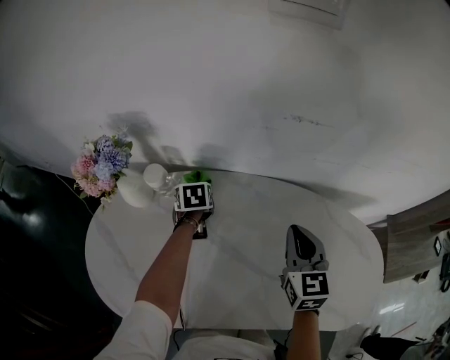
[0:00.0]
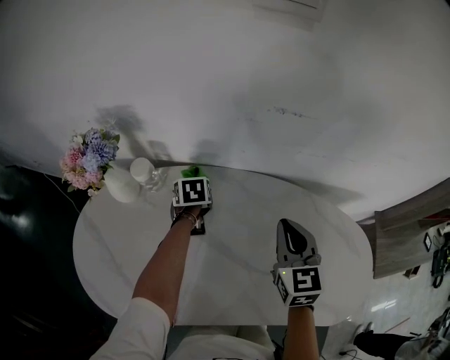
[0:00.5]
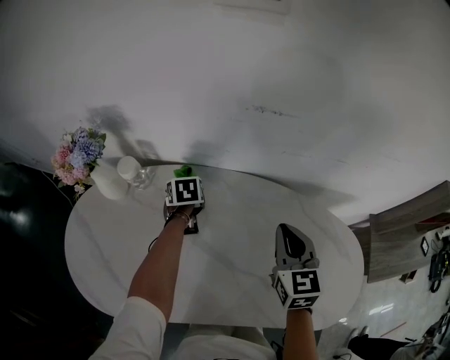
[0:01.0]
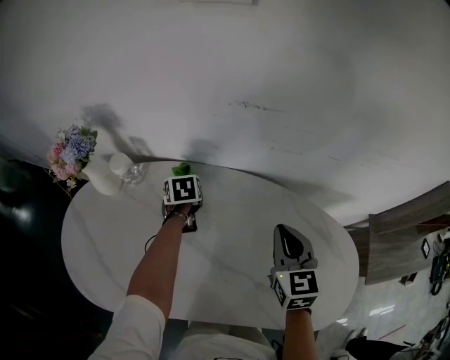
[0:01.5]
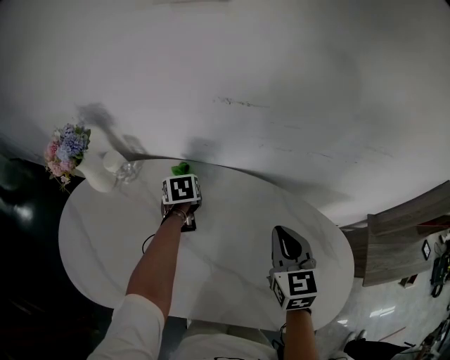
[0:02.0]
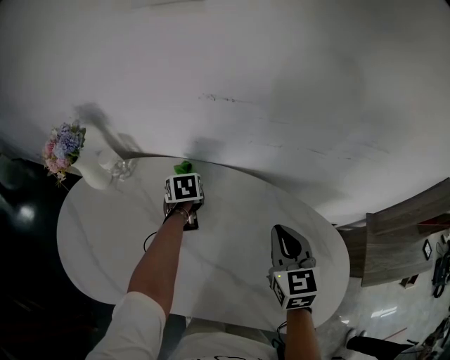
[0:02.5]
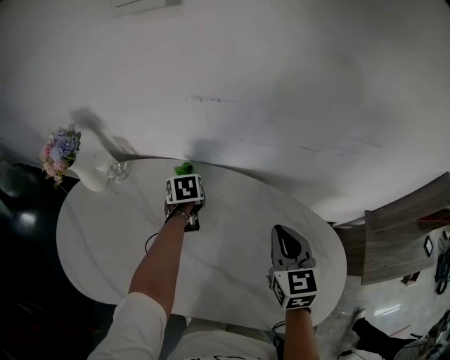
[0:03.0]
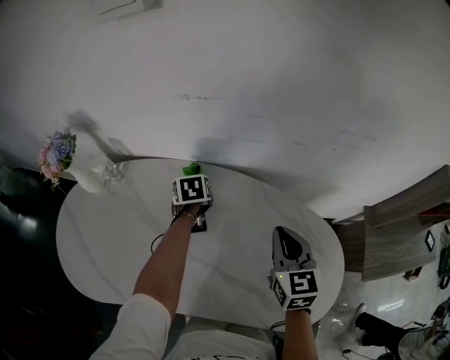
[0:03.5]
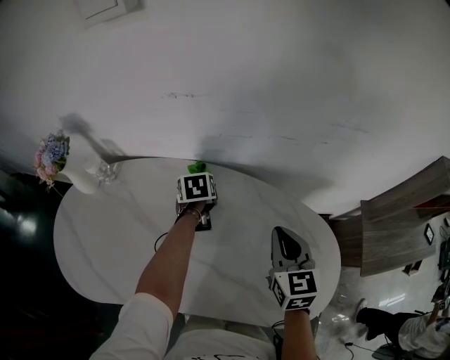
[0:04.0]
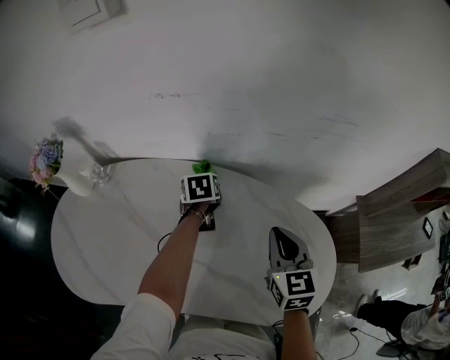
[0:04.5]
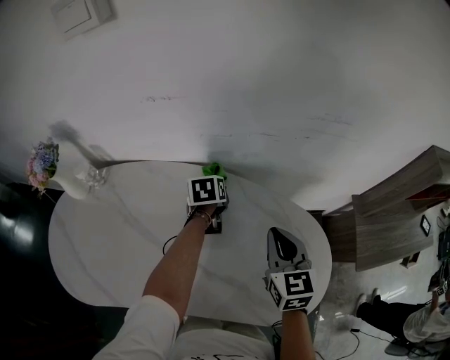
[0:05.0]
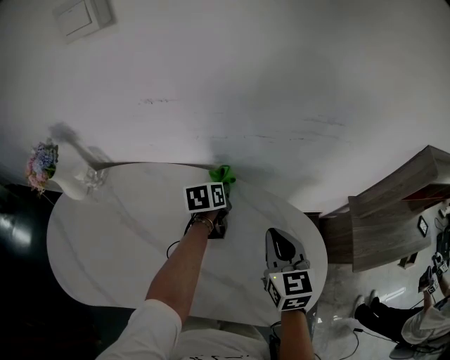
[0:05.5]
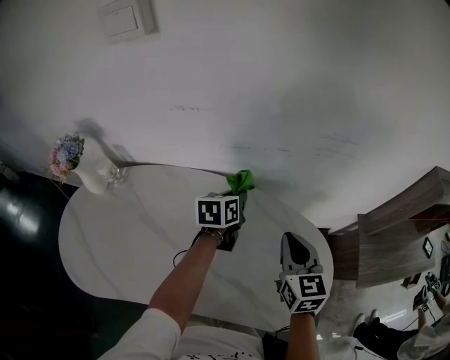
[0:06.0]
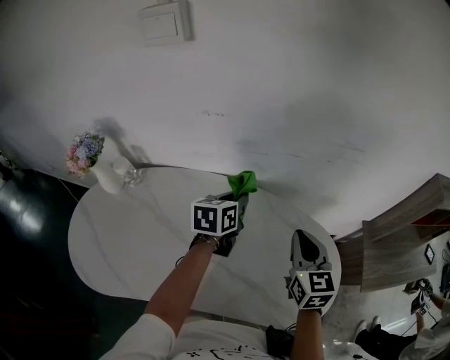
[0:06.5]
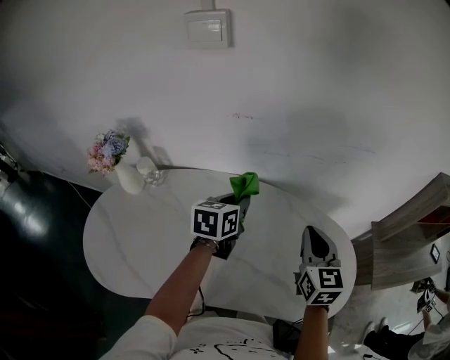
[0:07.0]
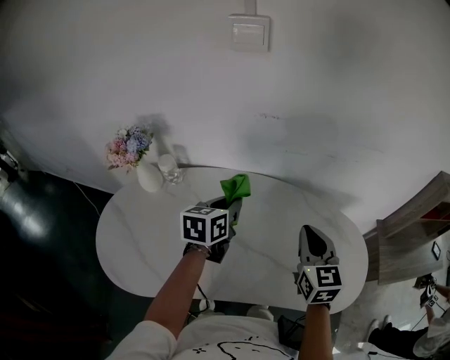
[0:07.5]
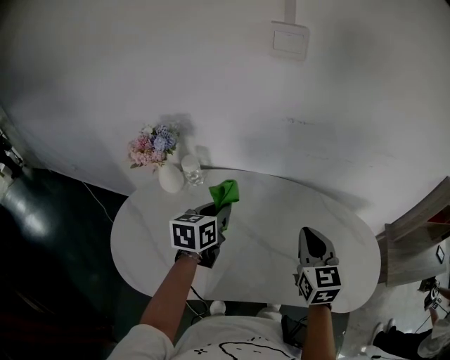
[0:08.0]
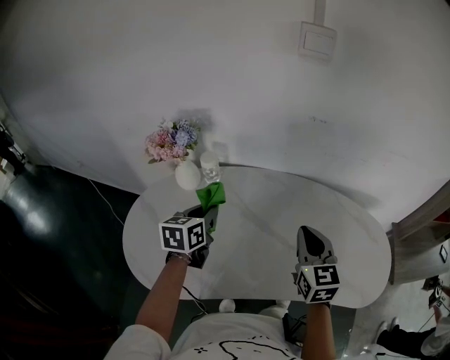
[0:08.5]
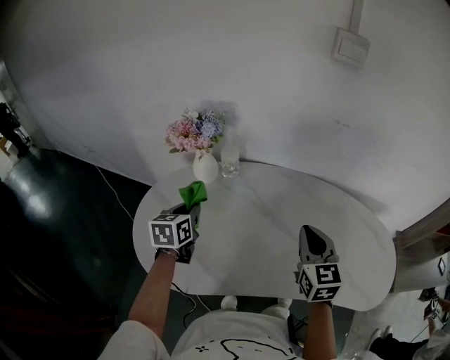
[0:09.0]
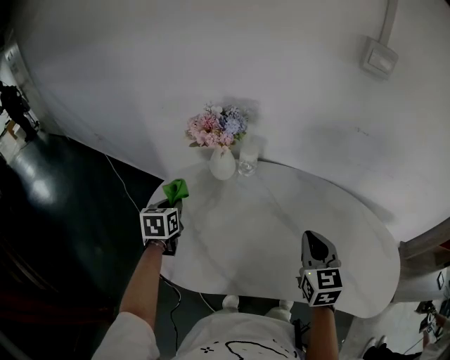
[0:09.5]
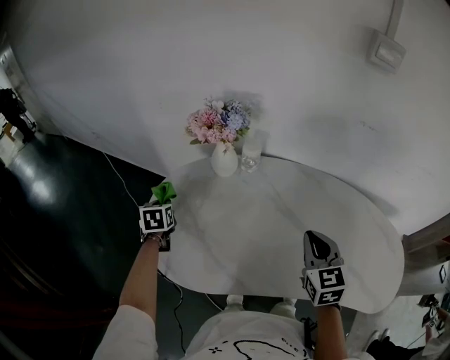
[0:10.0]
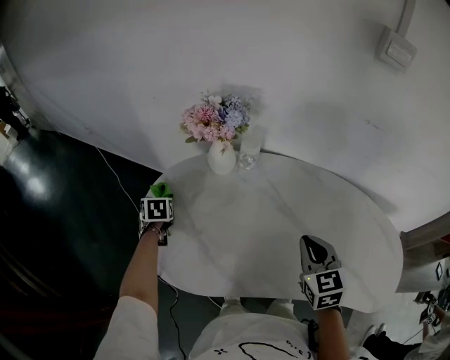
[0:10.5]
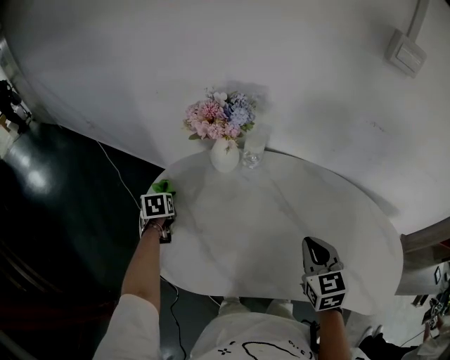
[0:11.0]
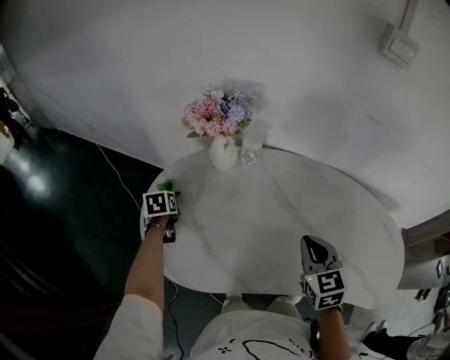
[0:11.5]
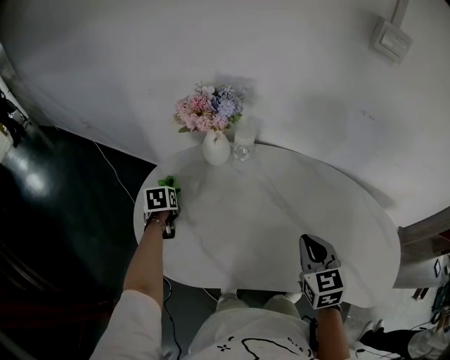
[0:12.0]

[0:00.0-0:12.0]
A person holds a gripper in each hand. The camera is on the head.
0:00.0 to 0:02.0: The grippers both shift to the right by some 10 cm.
0:02.0 to 0:04.0: The right gripper shifts approximately 10 cm to the right, while the left gripper moves to the right, some 15 cm.
0:04.0 to 0:06.0: The right gripper moves roughly 5 cm. Meanwhile the left gripper moves to the right and upward, some 15 cm, and swivels roughly 30 degrees.
0:06.0 to 0:08.0: The two grippers go about 30 cm to the left and backward.
0:08.0 to 0:10.0: The right gripper shifts by some 20 cm. The left gripper moves roughly 40 cm, and changes its angle by about 40 degrees.
0:10.0 to 0:12.0: The left gripper moves downward, roughly 5 cm.

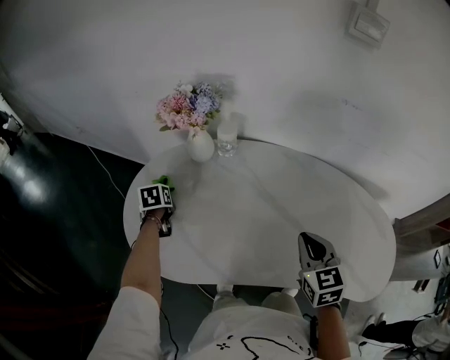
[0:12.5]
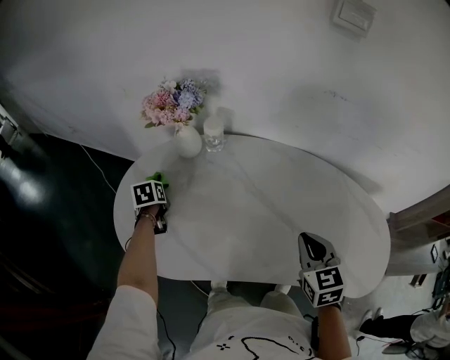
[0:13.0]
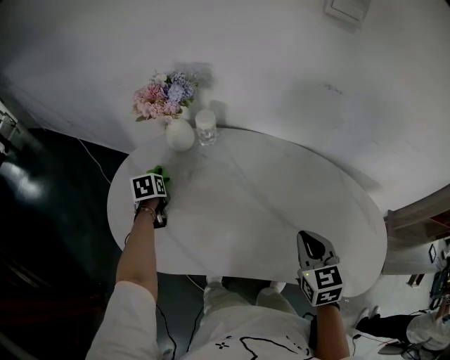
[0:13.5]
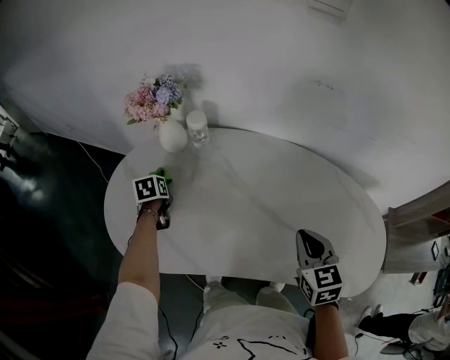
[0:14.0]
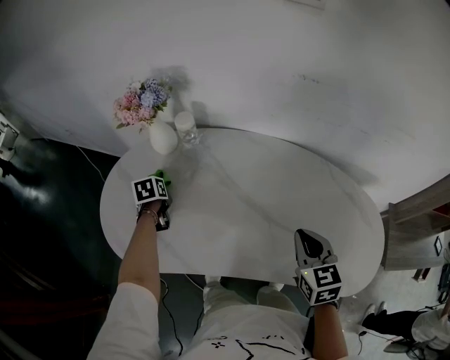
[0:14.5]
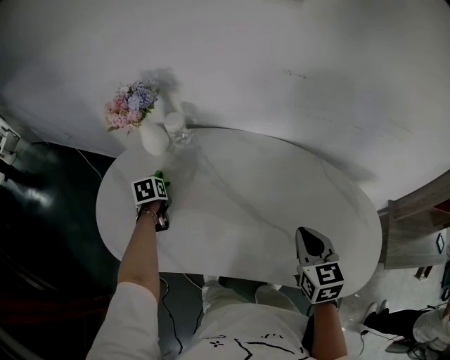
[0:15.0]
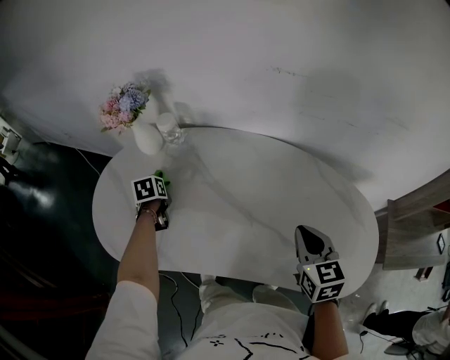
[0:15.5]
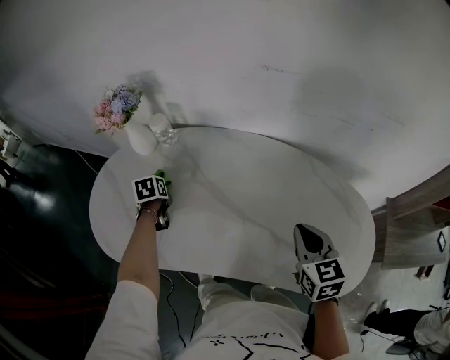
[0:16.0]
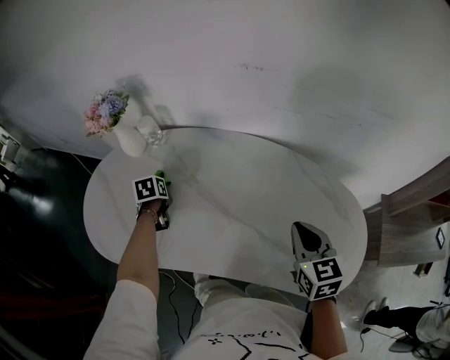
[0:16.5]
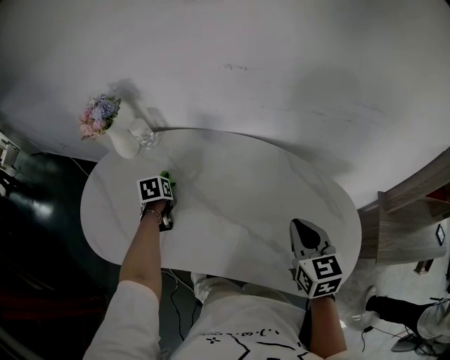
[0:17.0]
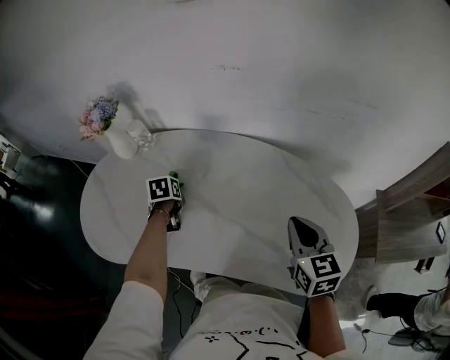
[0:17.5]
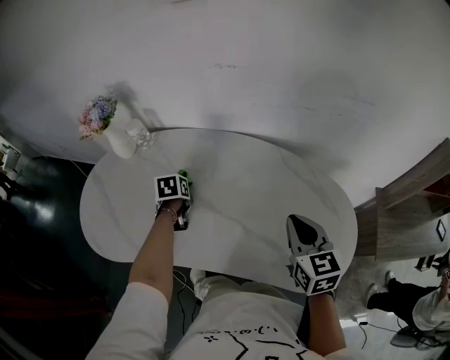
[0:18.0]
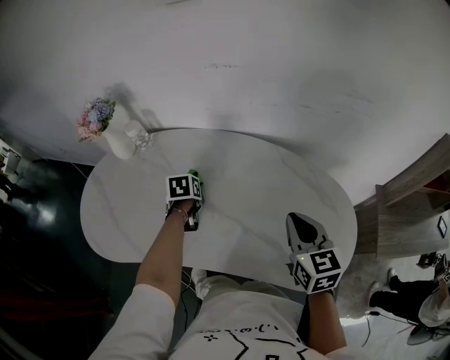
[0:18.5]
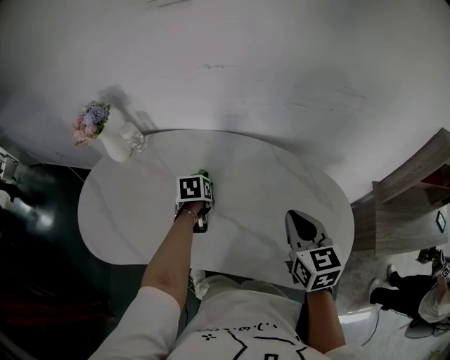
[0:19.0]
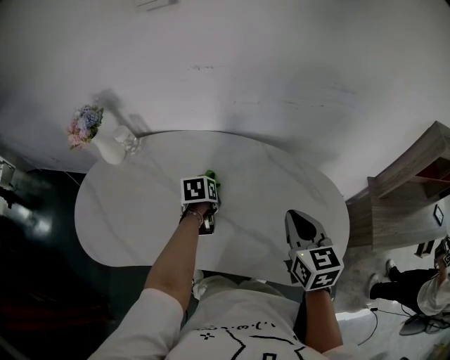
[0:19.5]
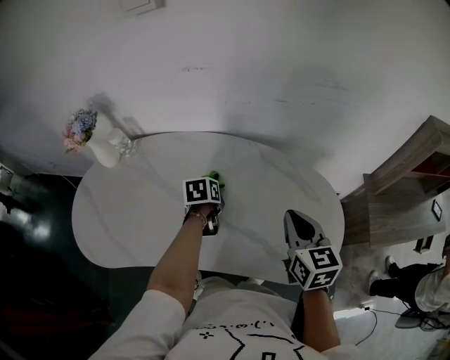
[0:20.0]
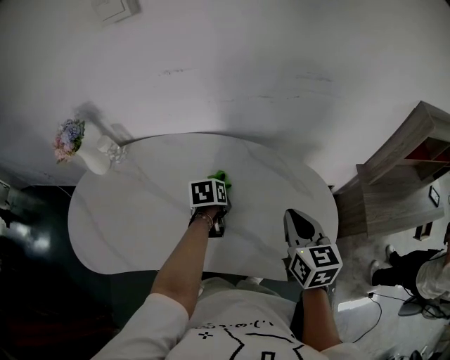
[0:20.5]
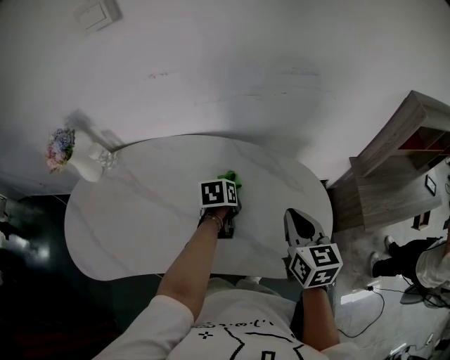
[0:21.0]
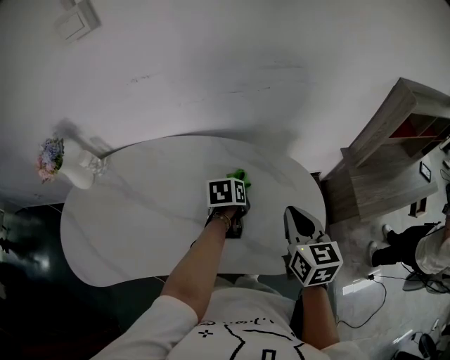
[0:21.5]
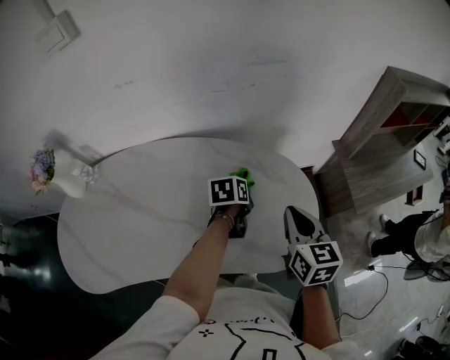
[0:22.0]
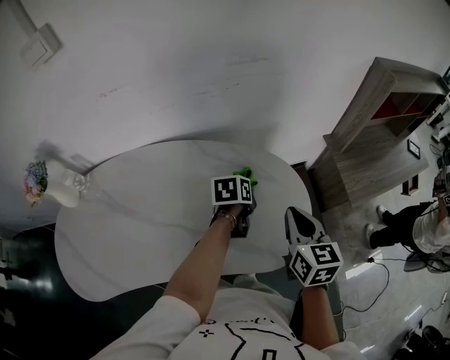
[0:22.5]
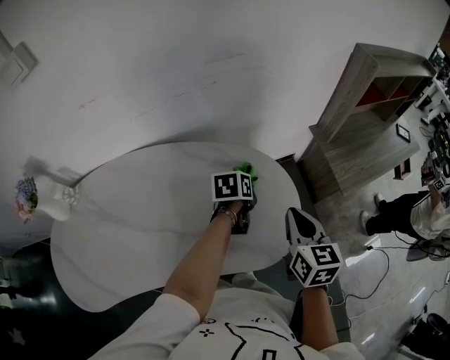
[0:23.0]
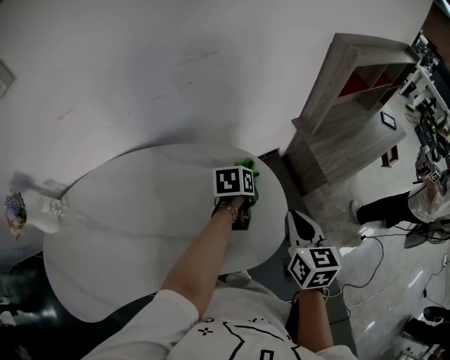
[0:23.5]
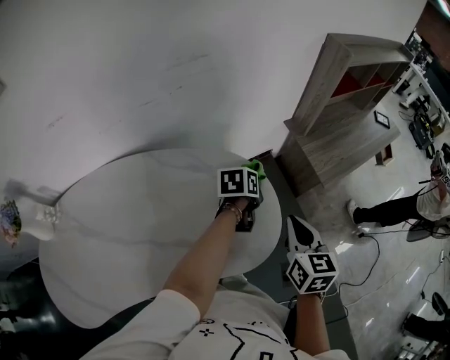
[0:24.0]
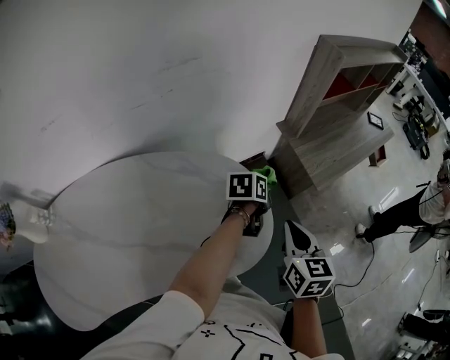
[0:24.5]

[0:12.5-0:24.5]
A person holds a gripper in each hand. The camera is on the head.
0:12.5 to 0:14.5: Both grippers move to the right, about 10 cm.
0:14.5 to 0:16.5: Both grippers move to the right, about 15 cm.
0:16.5 to 0:18.5: The left gripper goes approximately 20 cm to the right. The right gripper moves approximately 5 cm.
0:18.5 to 0:20.5: The left gripper travels to the right by approximately 20 cm, while the right gripper travels to the right by some 10 cm.
0:20.5 to 0:22.5: The right gripper heads to the right, covering some 10 cm, while the left gripper is displaced to the right by some 20 cm, and rotates about 20 degrees.
0:22.5 to 0:24.5: The right gripper heads to the right, covering approximately 10 cm. Meanwhile the left gripper moves to the right, approximately 20 cm, and rotates about 20 degrees.

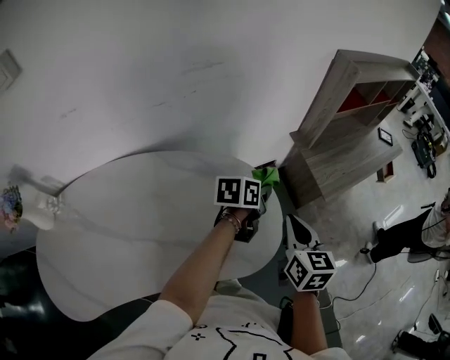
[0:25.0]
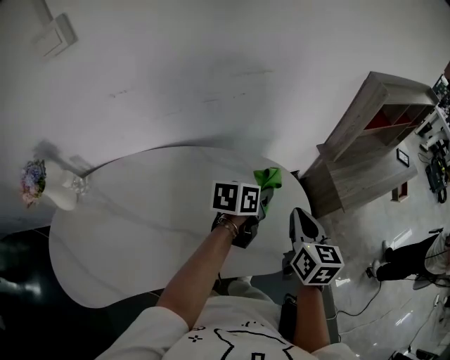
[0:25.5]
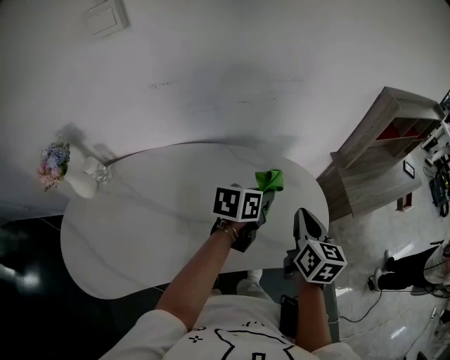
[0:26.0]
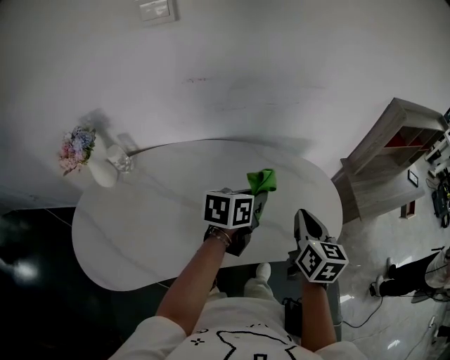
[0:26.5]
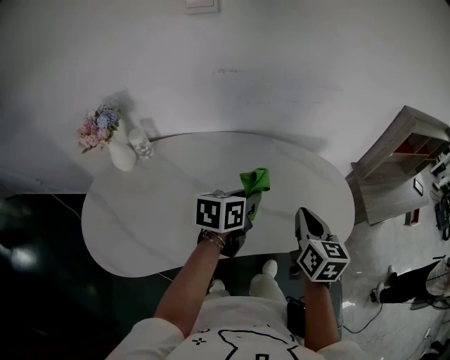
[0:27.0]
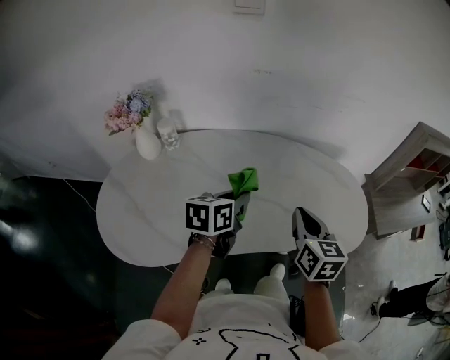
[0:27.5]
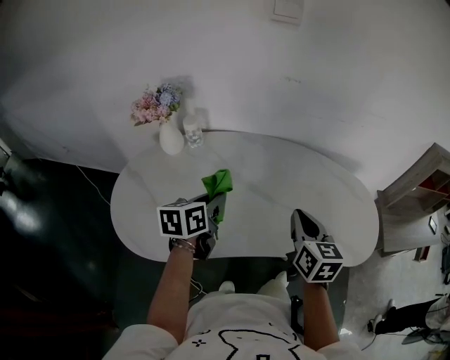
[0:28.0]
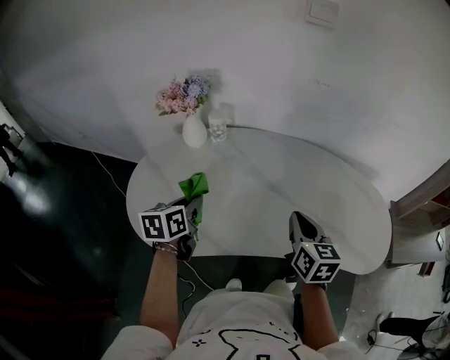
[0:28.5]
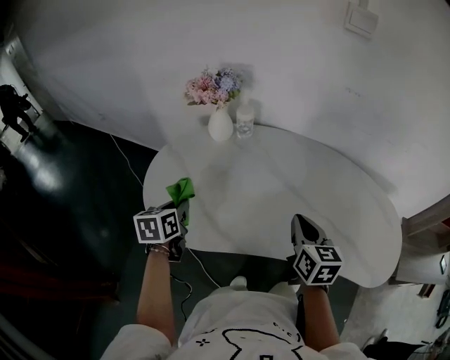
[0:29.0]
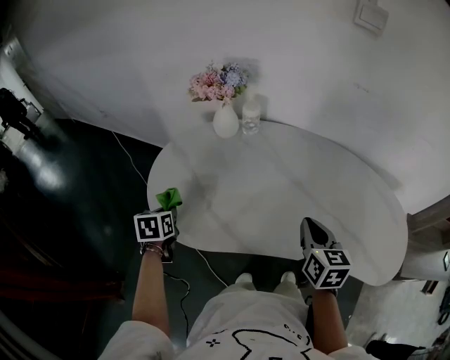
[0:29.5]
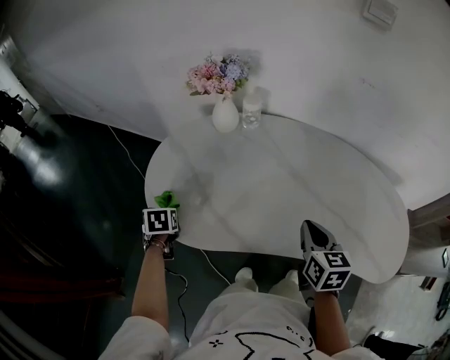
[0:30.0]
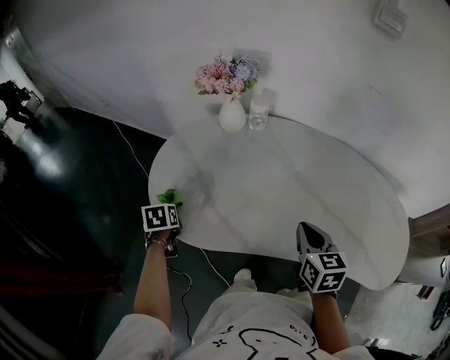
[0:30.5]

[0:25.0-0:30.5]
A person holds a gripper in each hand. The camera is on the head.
0:25.0 to 0:27.0: The two grippers go about 35 cm to the left and backward. The left gripper swivels approximately 30 degrees.
0:27.0 to 0:28.5: The left gripper moves about 40 cm, and turns by approximately 40 degrees; the right gripper shifts by roughly 20 cm, and turns by roughly 20 degrees.
0:28.5 to 0:30.5: The right gripper is displaced to the left and downward by about 10 cm; the left gripper moves to the left and downward, about 25 cm, and turns by roughly 40 degrees.
